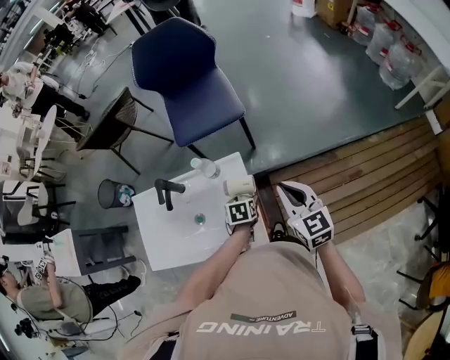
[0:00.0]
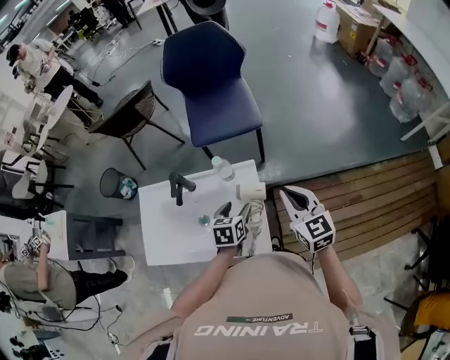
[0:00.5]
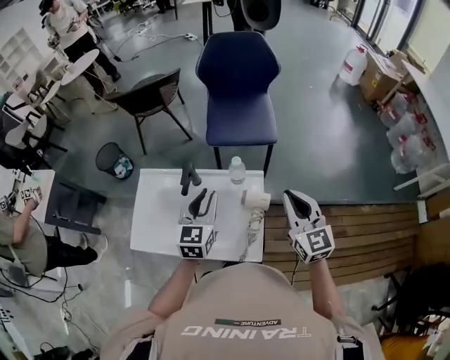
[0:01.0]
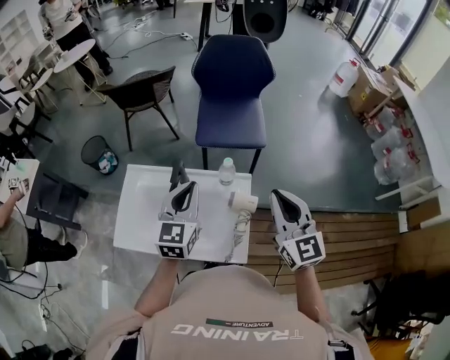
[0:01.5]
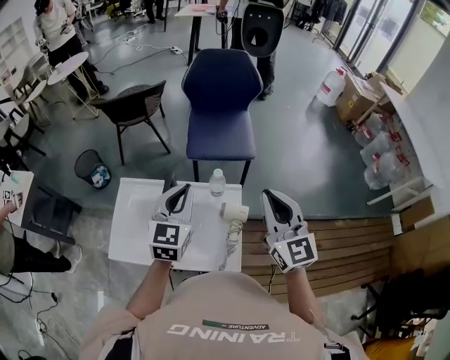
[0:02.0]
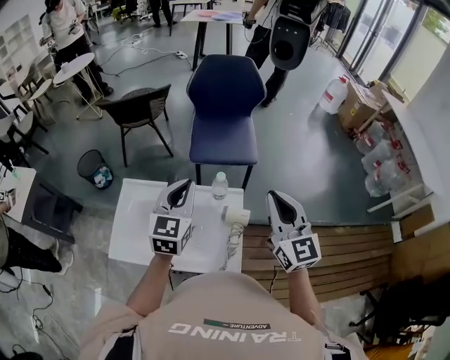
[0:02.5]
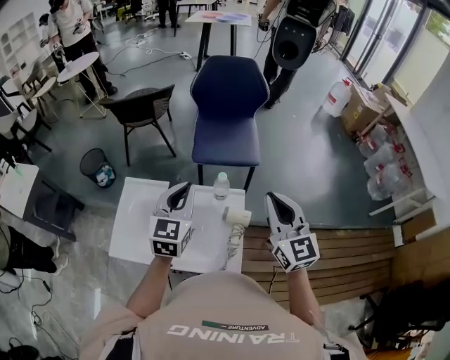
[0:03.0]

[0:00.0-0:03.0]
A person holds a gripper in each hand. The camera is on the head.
0.0 to 1.5 s: The left gripper travels upward and to the left by approximately 35 cm, tips its fingers upward by about 50 degrees, and closes; the right gripper is displaced upward and to the left by some 20 cm, and swivels roughly 20 degrees.
1.5 to 3.0 s: There are only small adjustments of the grippers.

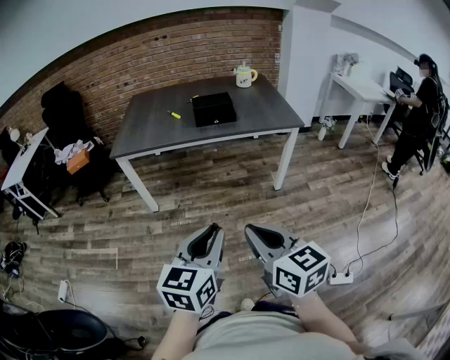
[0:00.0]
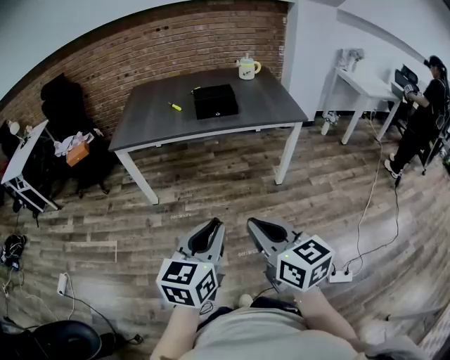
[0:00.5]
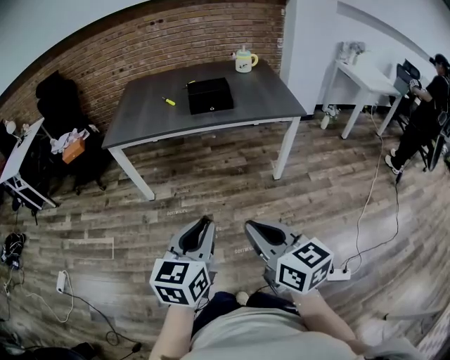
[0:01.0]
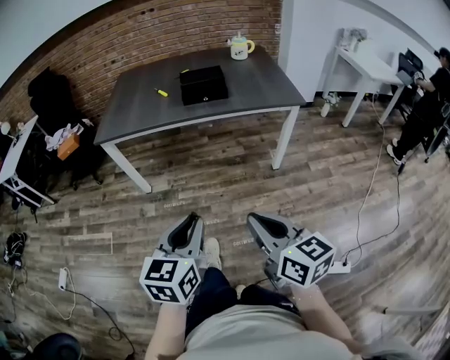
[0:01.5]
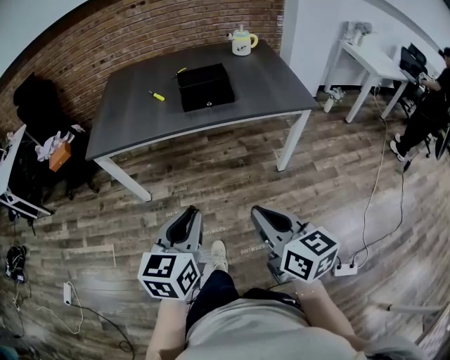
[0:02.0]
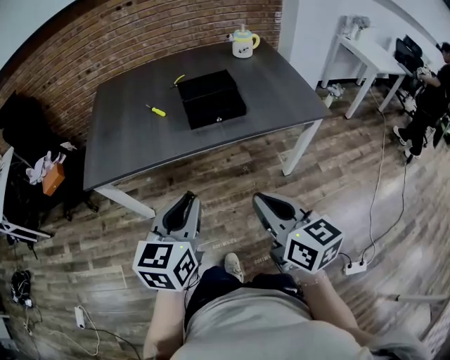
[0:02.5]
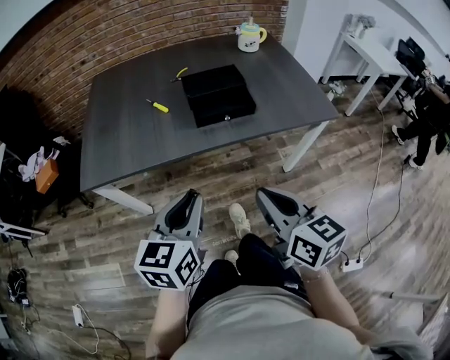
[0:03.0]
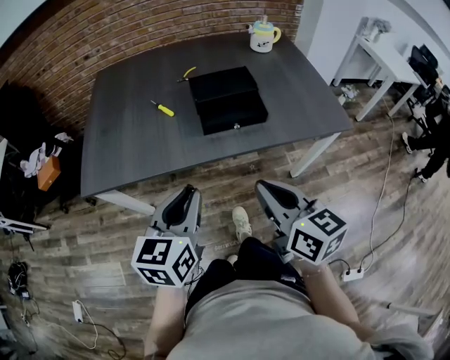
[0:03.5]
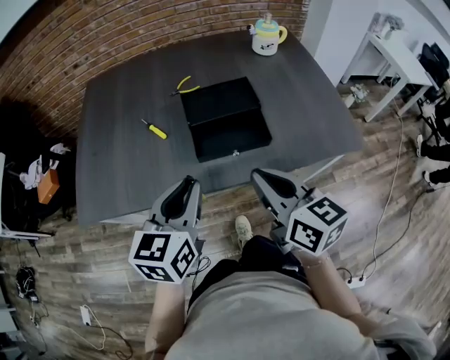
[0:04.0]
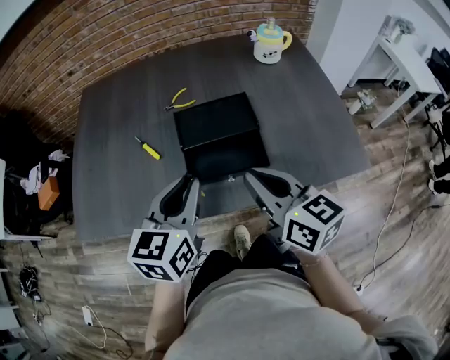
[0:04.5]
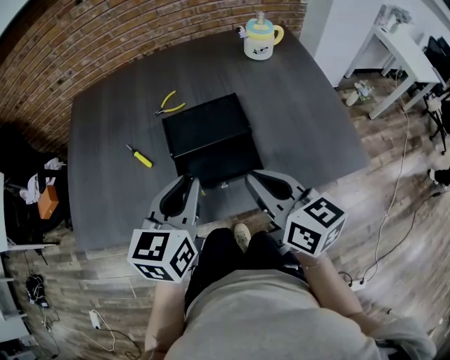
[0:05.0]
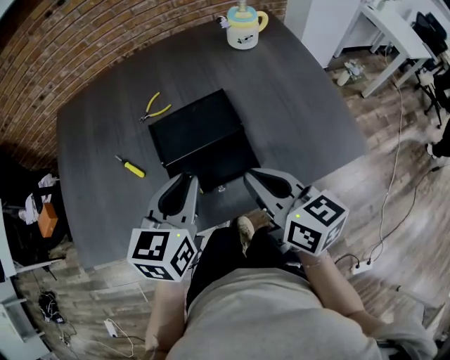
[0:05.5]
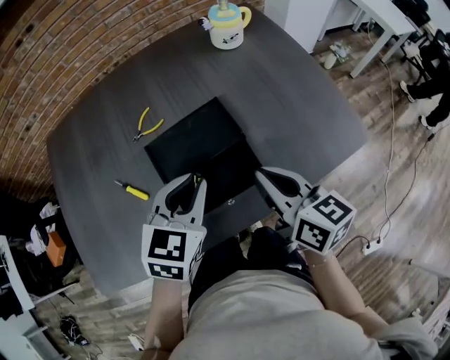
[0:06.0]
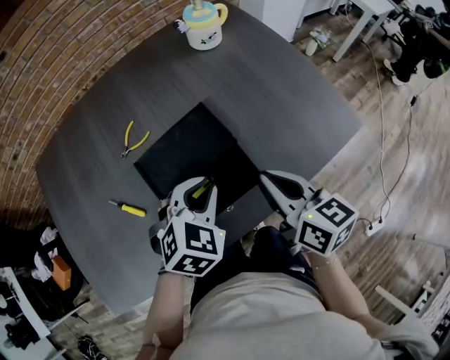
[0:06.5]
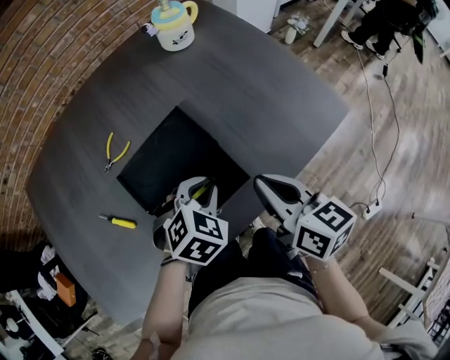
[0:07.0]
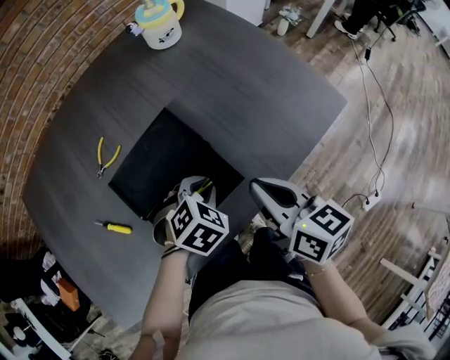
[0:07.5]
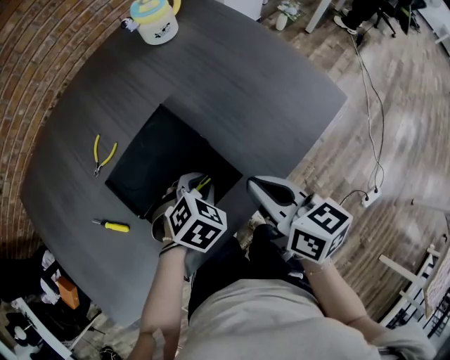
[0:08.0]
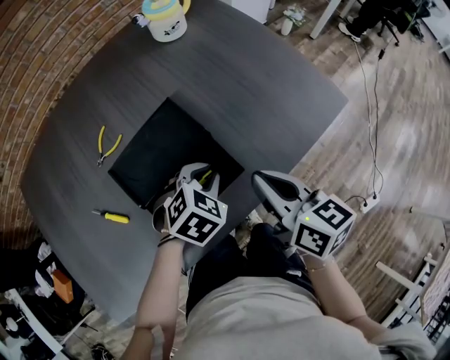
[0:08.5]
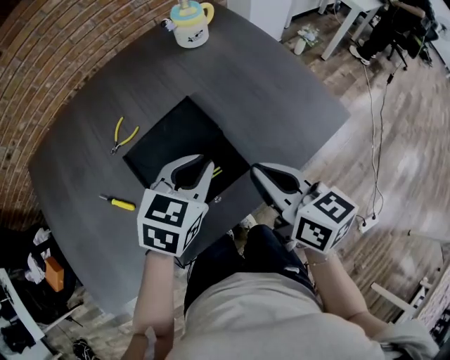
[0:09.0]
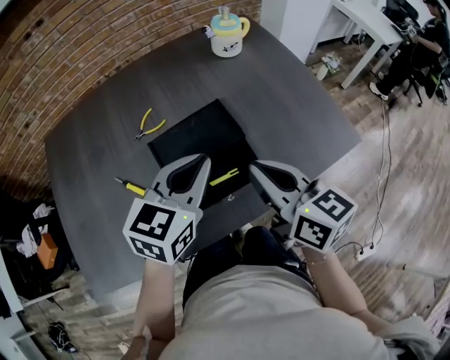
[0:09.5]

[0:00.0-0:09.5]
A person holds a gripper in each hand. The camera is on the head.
0.0 to 2.0 s: The grippers both shift forward by approximately 20 cm.
2.0 to 4.0 s: Both grippers travel together forward, roughly 40 cm.
4.0 to 5.5 s: Both grippers travel together forward and to the right, some 15 cm.
5.5 to 7.5 s: The left gripper travels downward by about 15 cm, and tilts its fingers approximately 40 degrees downward; the right gripper heads downward, covering approximately 5 cm, and swivels roughly 30 degrees.
7.5 to 9.5 s: The right gripper is displaced upward and to the left by roughly 10 cm, and swivels approximately 20 degrees. Meanwhile the left gripper is displaced upward by some 20 cm, and tips its fingers upward by some 40 degrees.

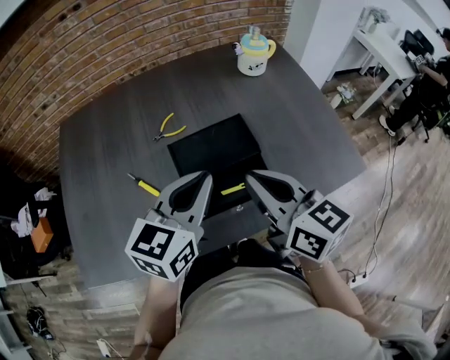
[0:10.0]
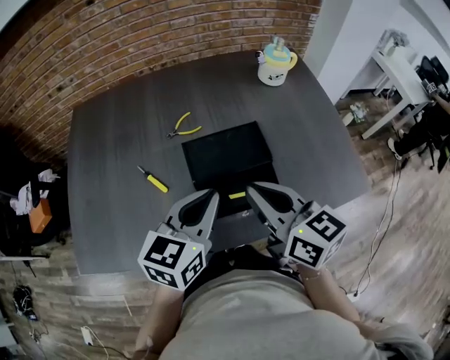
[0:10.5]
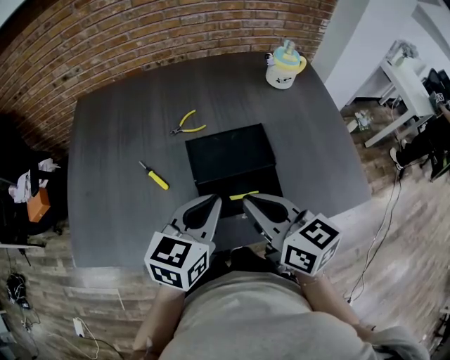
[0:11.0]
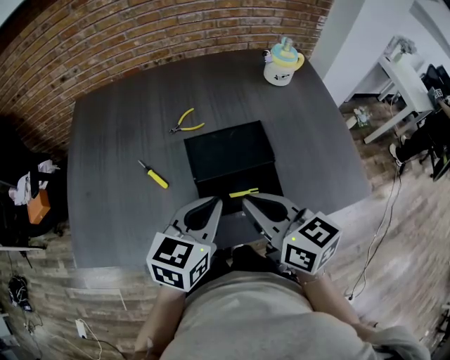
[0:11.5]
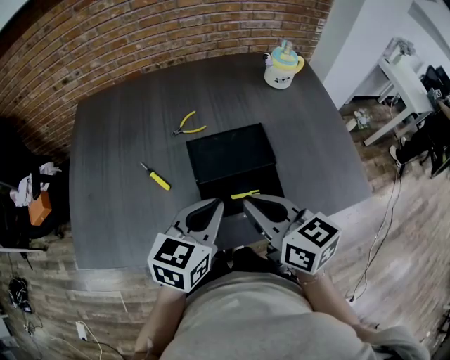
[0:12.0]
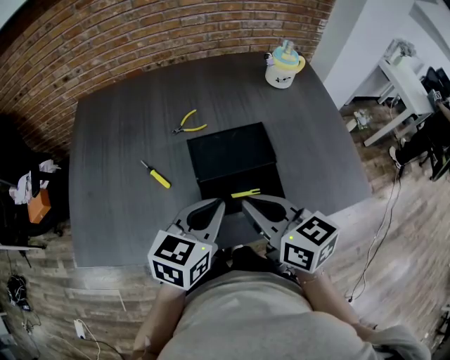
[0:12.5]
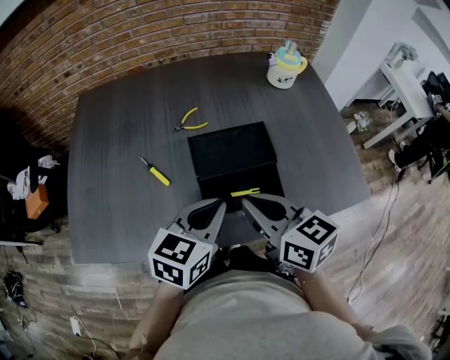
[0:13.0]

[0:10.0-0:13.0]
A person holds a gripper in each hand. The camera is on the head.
10.0 to 11.5 s: The left gripper moves downward, some 5 cm. The right gripper changes place by approximately 5 cm.
11.5 to 13.0 s: Both grippers stay put.

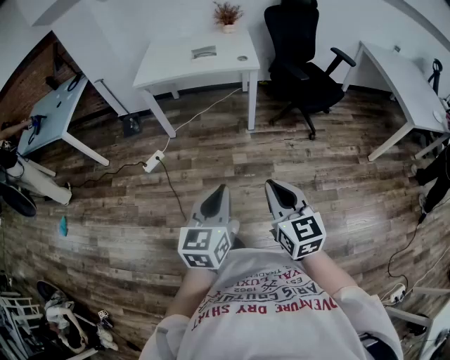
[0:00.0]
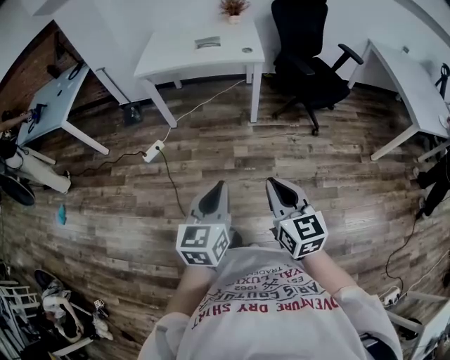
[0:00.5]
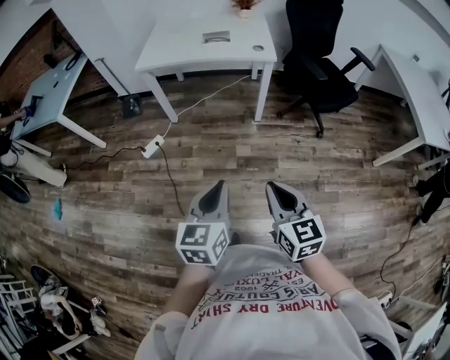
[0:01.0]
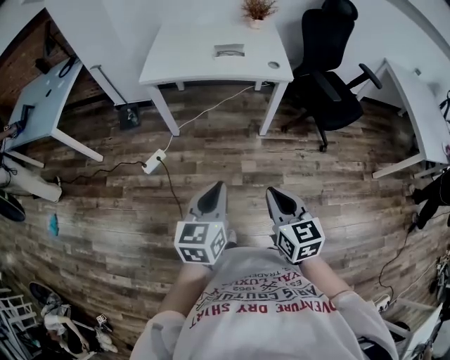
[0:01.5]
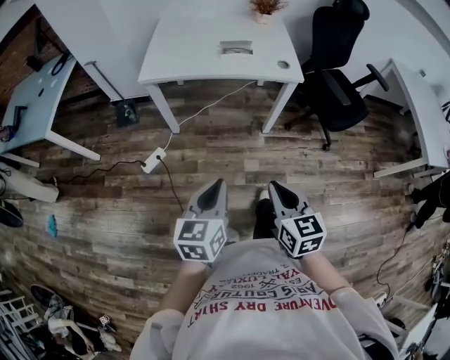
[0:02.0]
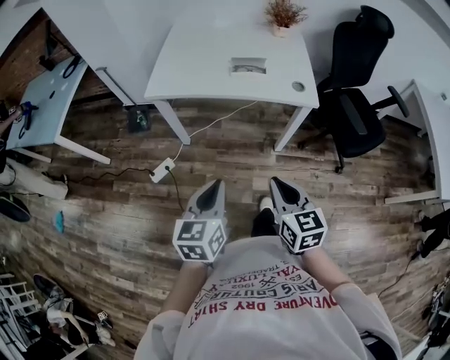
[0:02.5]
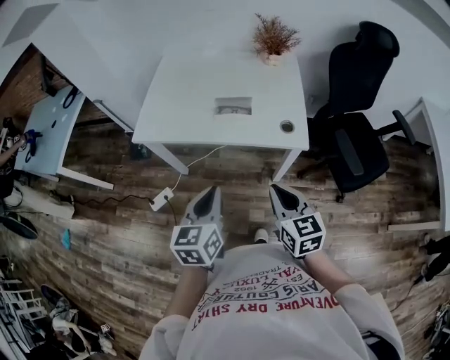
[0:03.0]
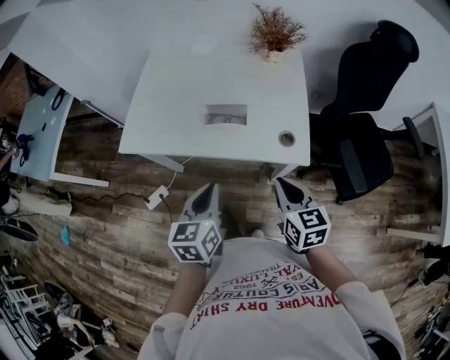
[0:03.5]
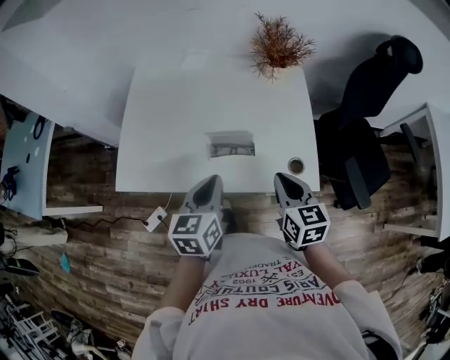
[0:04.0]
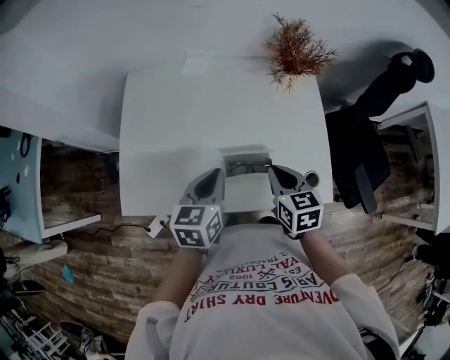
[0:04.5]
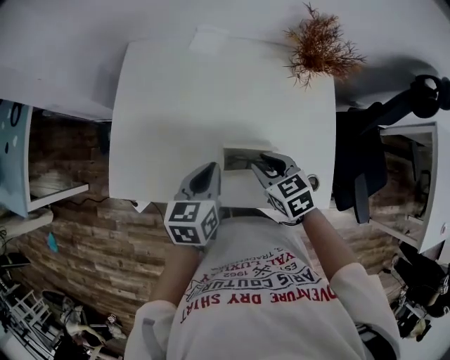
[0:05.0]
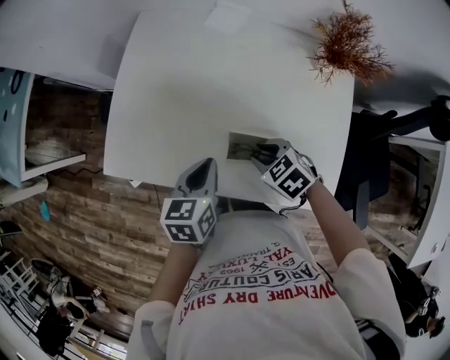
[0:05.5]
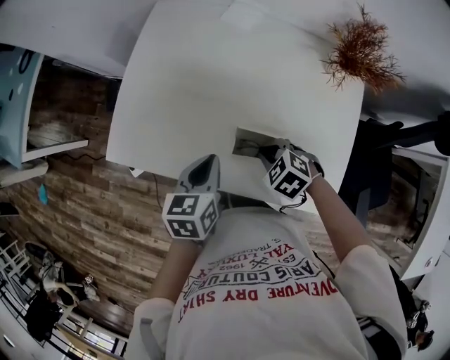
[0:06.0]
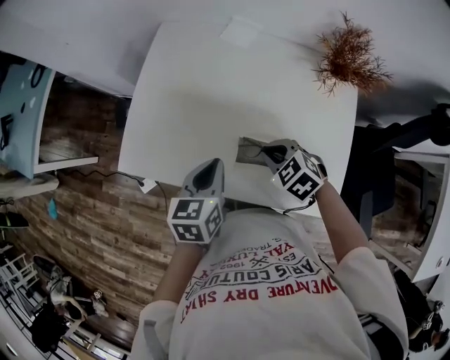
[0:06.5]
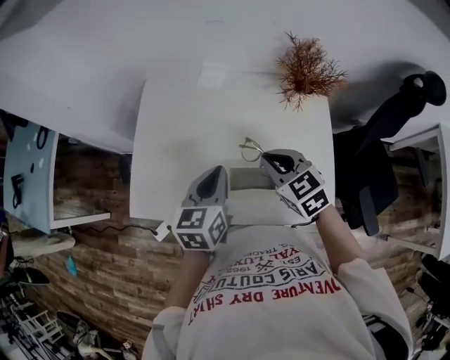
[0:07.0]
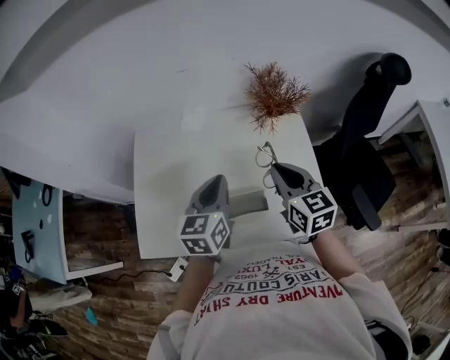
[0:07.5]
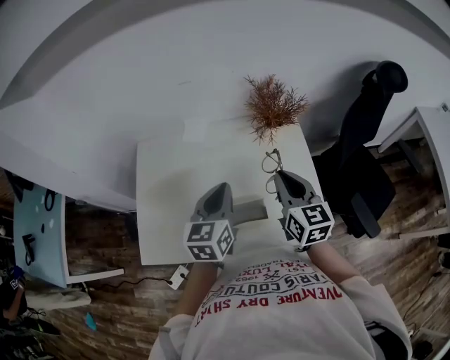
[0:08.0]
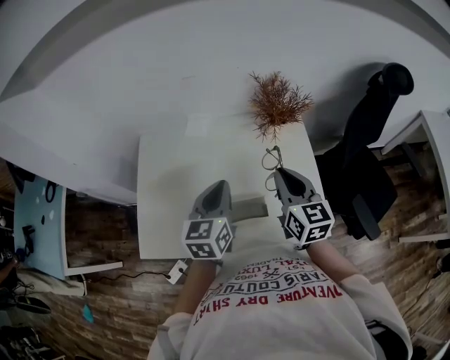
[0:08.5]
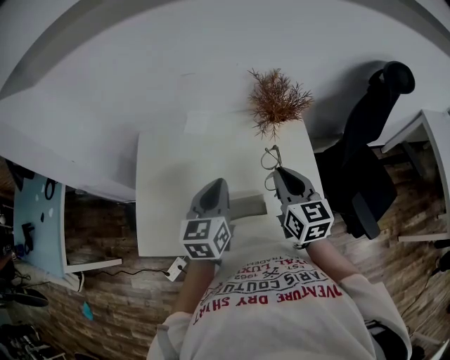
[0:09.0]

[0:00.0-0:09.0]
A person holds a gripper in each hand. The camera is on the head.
0.0 to 2.0 s: The two grippers go some 30 cm forward and to the left.
2.0 to 4.5 s: The pair of grippers is taken forward, approximately 60 cm.
4.5 to 7.0 s: The left gripper shifts by approximately 5 cm. The right gripper goes downward and returns, some 10 cm each way, changes its angle by roughly 30 degrees, and opens, then closes again.
7.0 to 9.0 s: The left gripper moves upward, roughly 5 cm; the right gripper heads to the right and upward, covering about 10 cm, and swivels roughly 40 degrees.

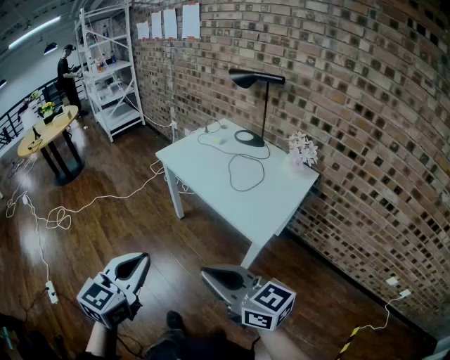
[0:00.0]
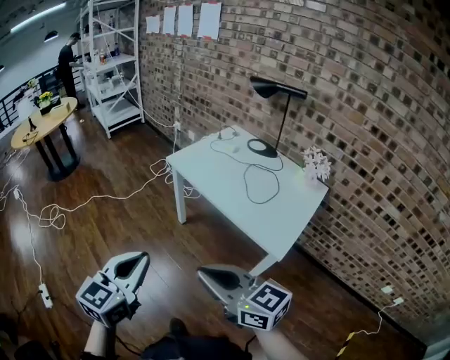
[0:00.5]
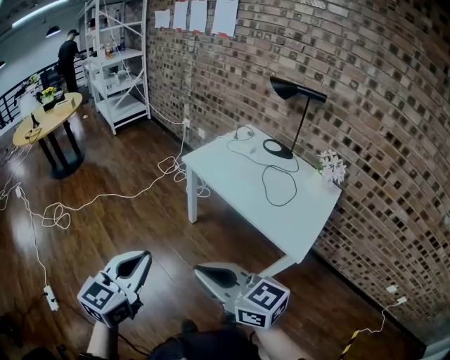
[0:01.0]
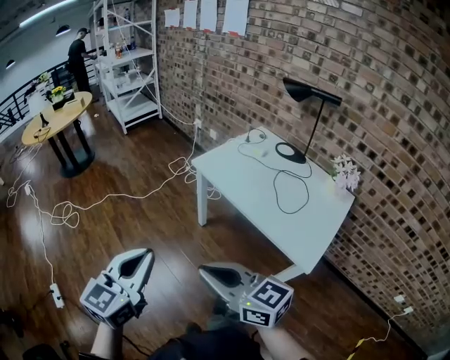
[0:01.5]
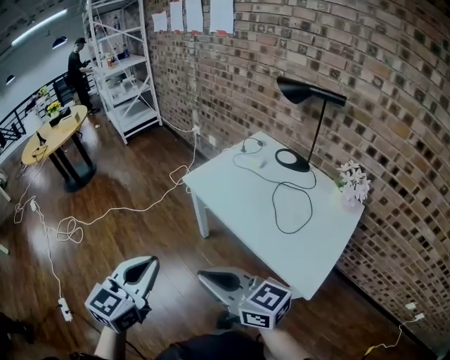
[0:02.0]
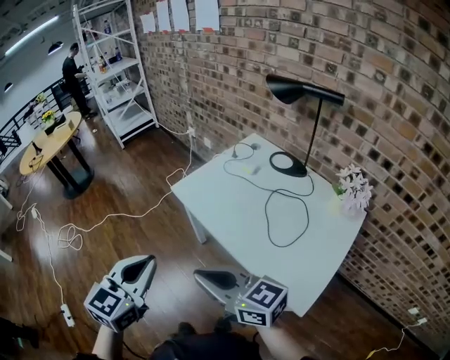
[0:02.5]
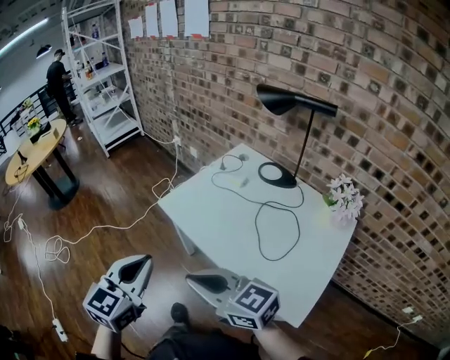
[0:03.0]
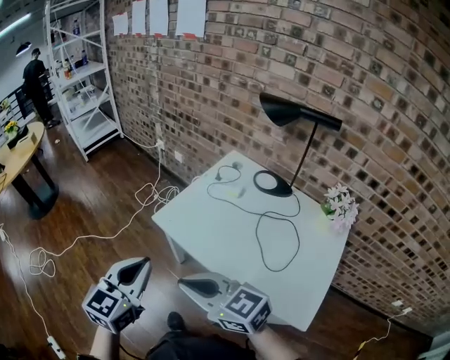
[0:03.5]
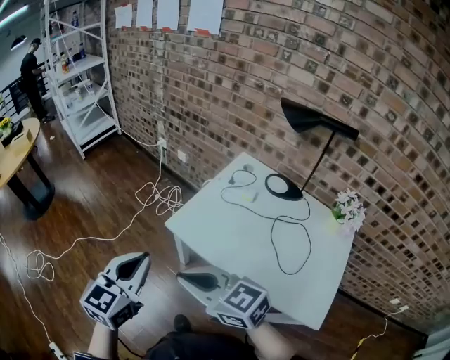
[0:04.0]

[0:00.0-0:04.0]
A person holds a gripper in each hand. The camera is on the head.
0.0 to 2.0 s: The right gripper shifts roughly 30 cm forward and to the left; the left gripper shifts approximately 25 cm forward.
2.0 to 4.0 s: Both grippers move forward, about 25 cm.
